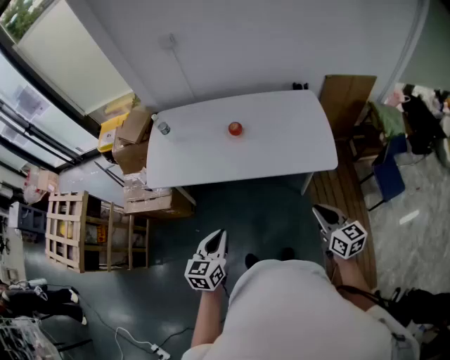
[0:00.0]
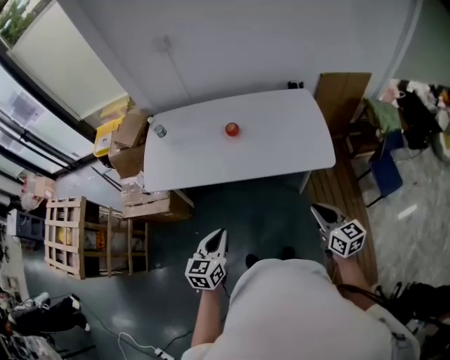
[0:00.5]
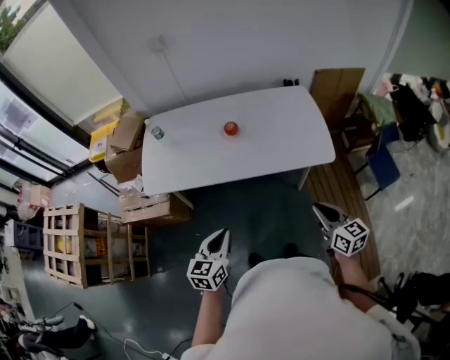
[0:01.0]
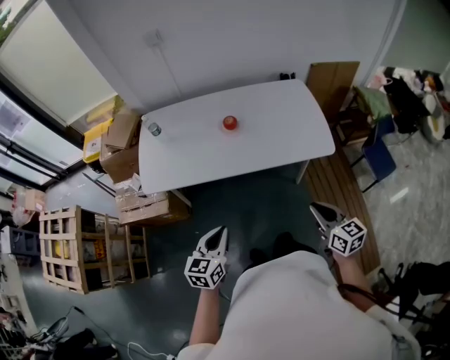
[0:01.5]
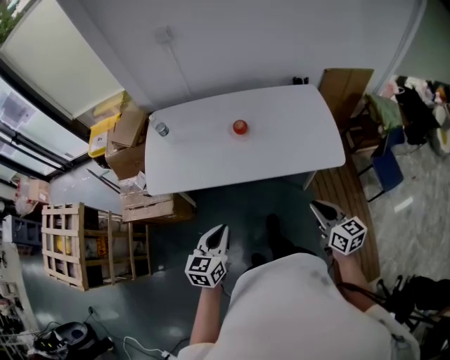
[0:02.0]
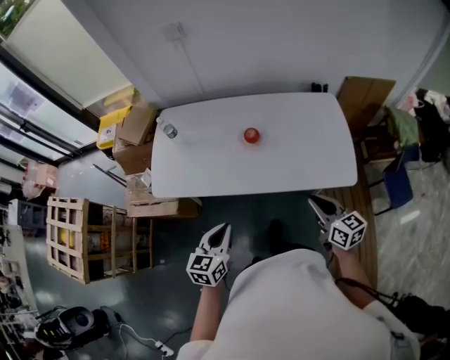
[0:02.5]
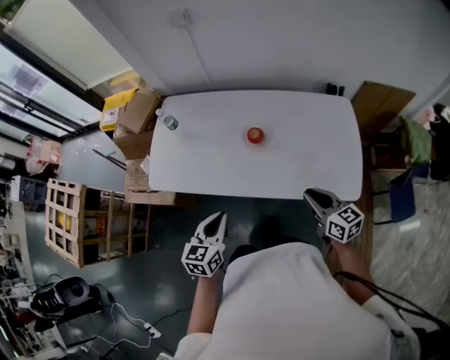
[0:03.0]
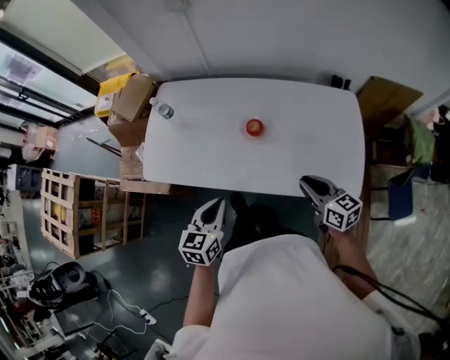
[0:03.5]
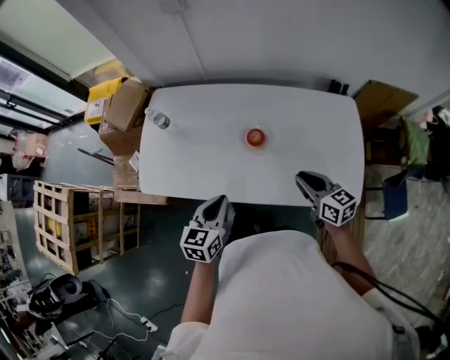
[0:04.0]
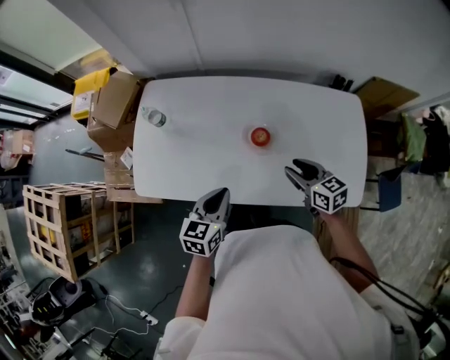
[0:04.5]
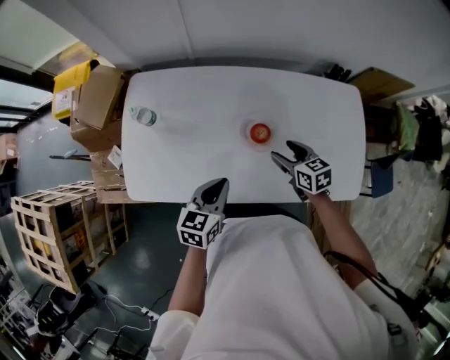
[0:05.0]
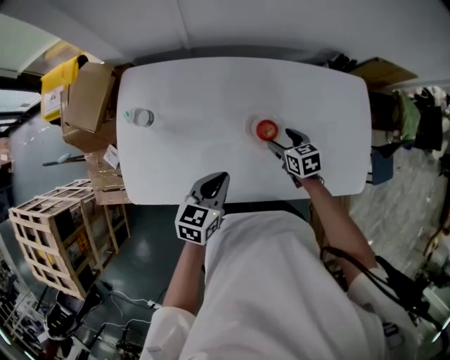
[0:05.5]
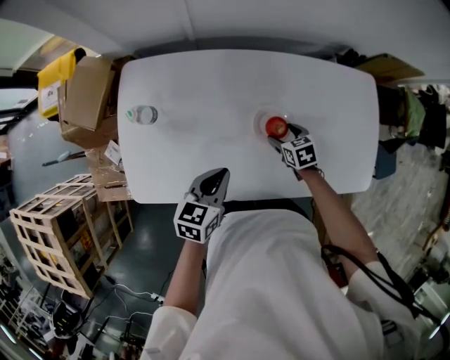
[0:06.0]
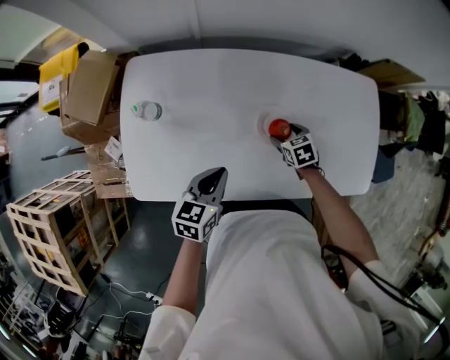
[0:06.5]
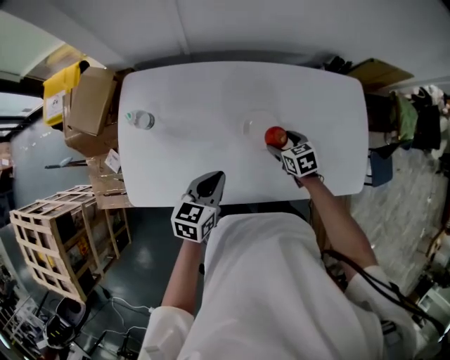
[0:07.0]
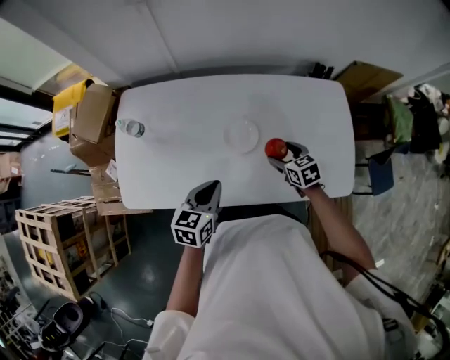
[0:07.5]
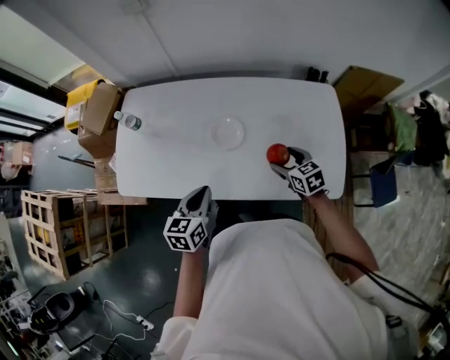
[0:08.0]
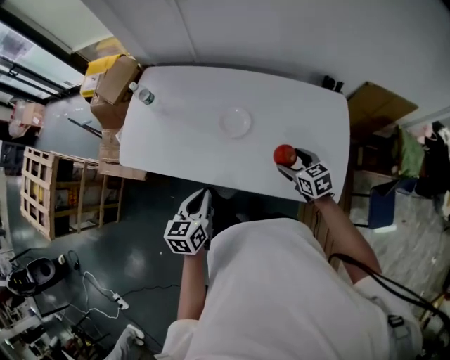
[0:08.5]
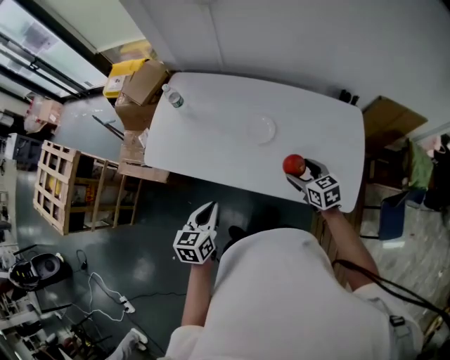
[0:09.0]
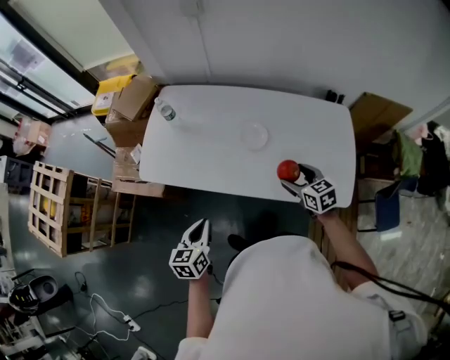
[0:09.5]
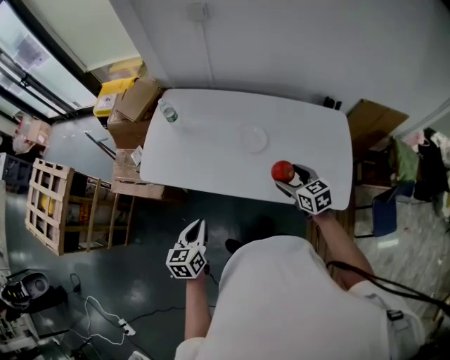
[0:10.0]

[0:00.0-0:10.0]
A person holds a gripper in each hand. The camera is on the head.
0:00.0 to 0:02.0: The left gripper is displaced forward and to the left by roughly 10 cm; the right gripper travels to the left by some 5 cm.
0:02.0 to 0:04.0: Both grippers move forward, some 30 cm.
0:04.0 to 0:06.0: The right gripper shifts approximately 30 cm downward, forward and to the left, tips its fingers downward by approximately 40 degrees, and opens up. The left gripper shifts roughly 20 cm forward, downward and to the left.
0:06.0 to 0:08.0: The left gripper travels to the right, backward and upward by approximately 20 cm. The right gripper heads to the right, upward and backward, covering approximately 25 cm.
0:08.0 to 0:10.0: The left gripper moves to the left and backward, about 20 cm. Meanwhile the right gripper shifts approximately 15 cm to the left, upward and backward.

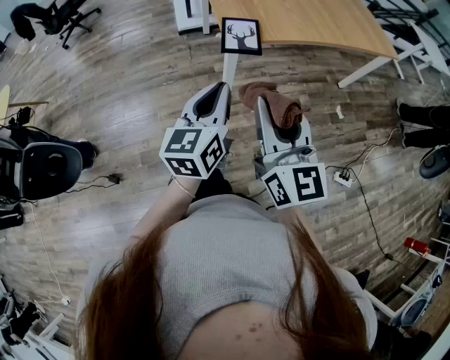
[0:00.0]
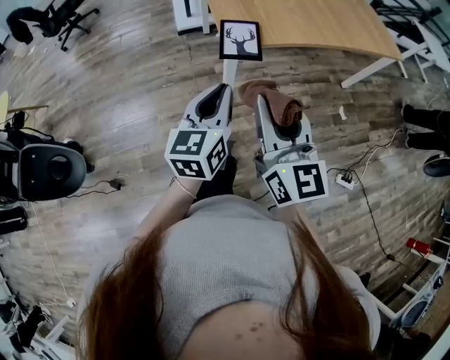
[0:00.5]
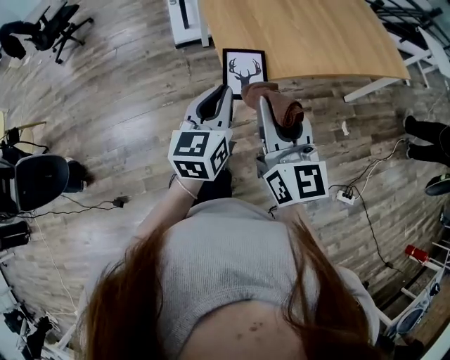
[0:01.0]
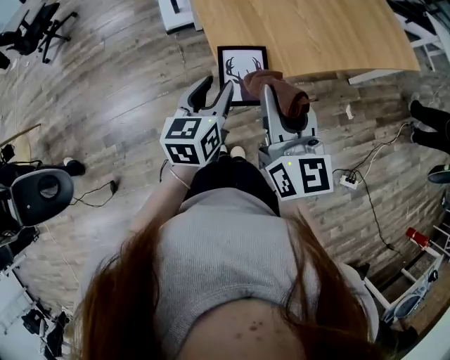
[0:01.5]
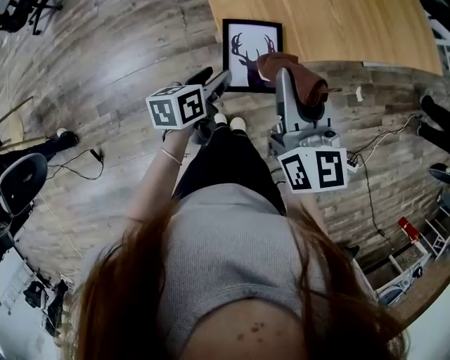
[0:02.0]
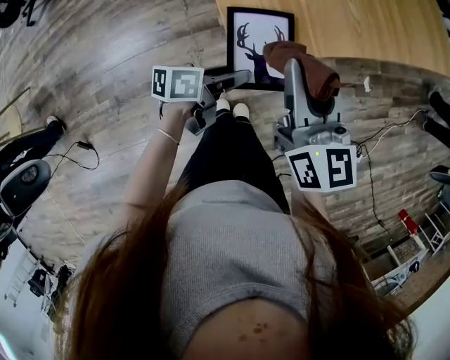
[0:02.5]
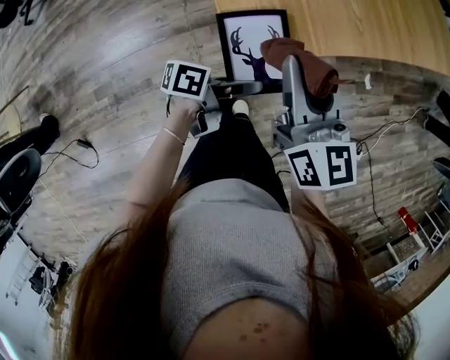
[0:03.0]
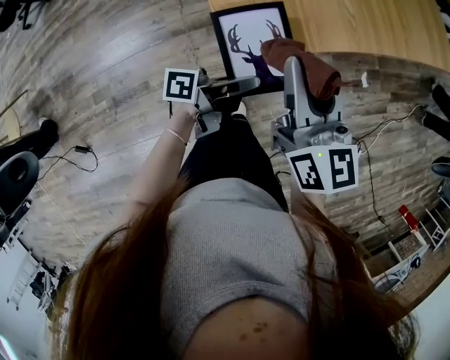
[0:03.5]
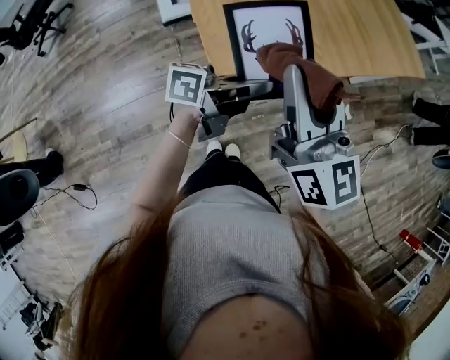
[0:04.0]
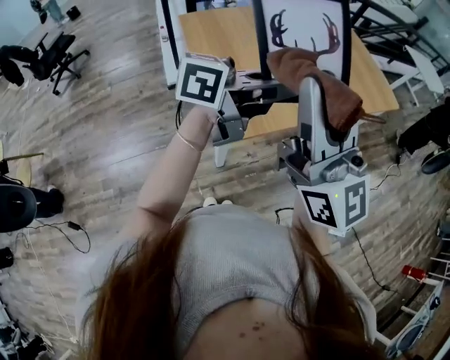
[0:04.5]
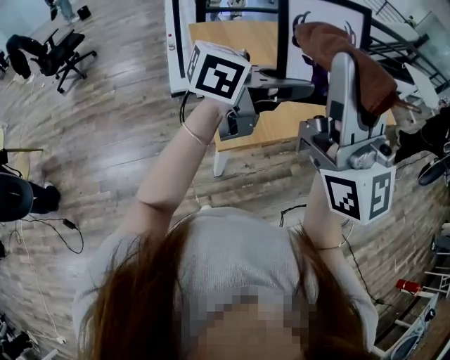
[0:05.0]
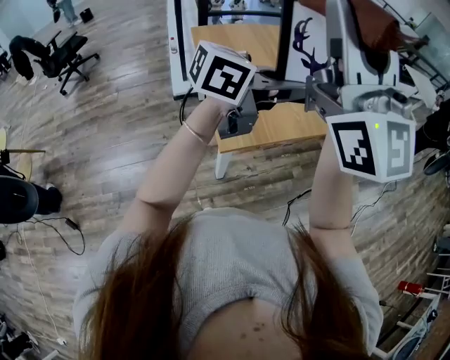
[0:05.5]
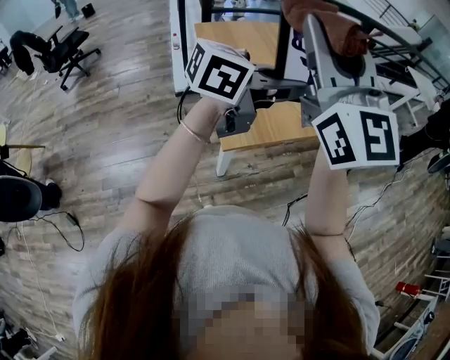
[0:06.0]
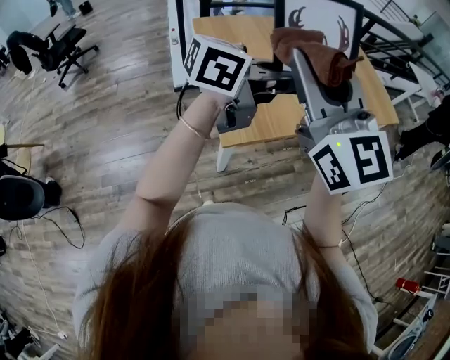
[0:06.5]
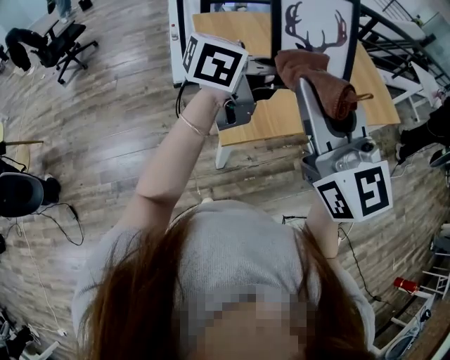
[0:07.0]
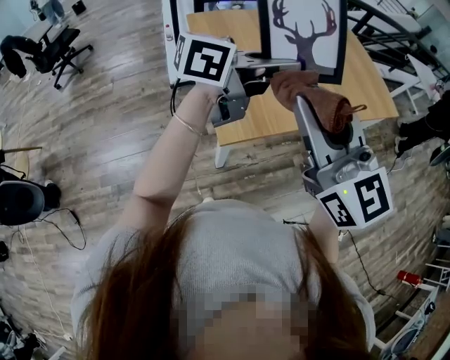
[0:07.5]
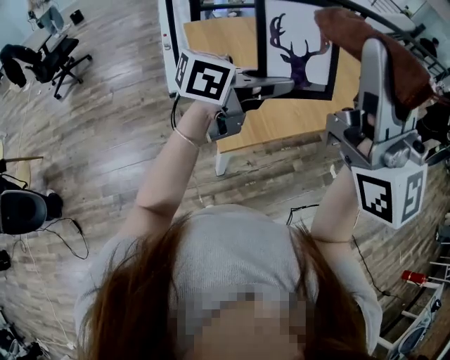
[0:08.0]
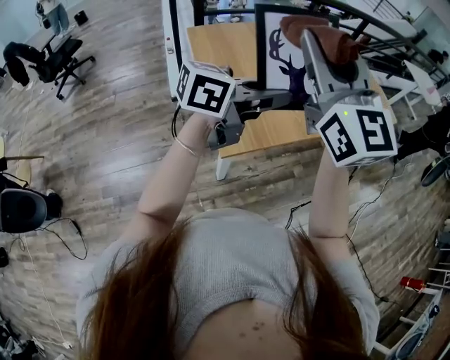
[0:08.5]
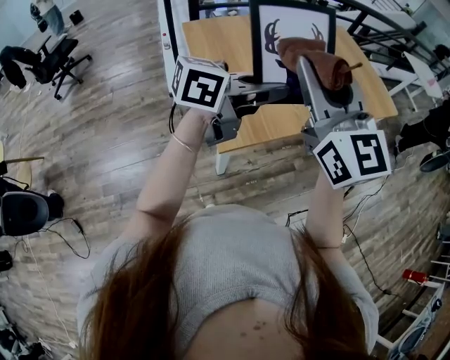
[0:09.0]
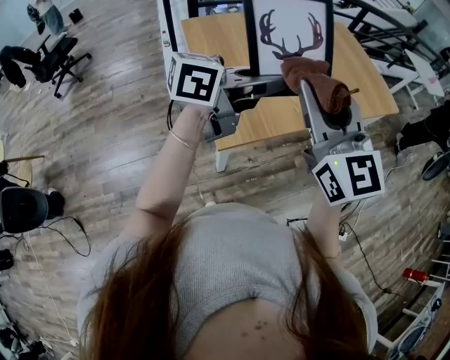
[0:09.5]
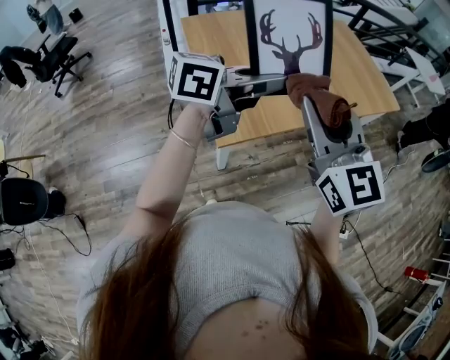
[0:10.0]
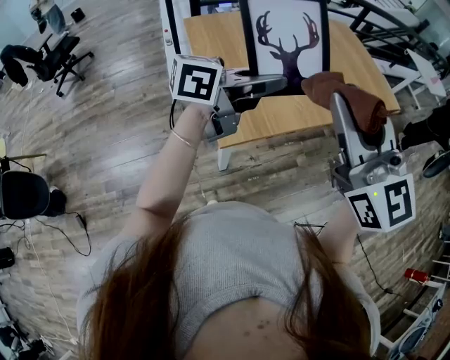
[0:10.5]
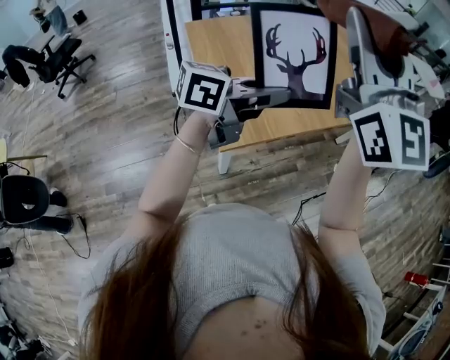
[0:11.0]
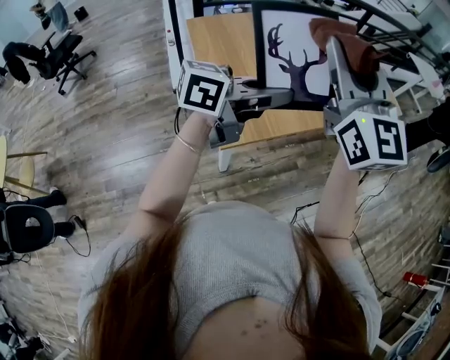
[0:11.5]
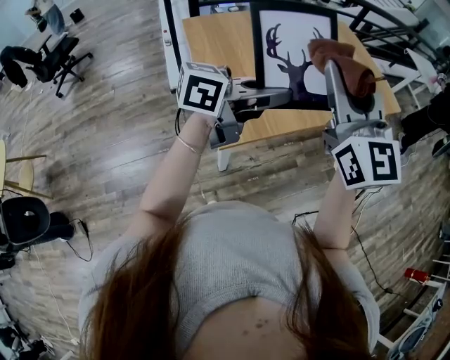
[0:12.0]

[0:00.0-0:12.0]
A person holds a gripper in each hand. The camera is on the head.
0:00.0 to 0:02.0: The right gripper shifts roughly 35 cm forward; the left gripper moves forward and downward, roughly 40 cm, turns by roughly 40 degrees, and opens its fingers.
0:02.0 to 0:04.0: The left gripper goes about 20 cm upward and to the right, angles its fingers upward, by about 40 degrees, and closes. Meanwhile the right gripper heads upward, covering about 10 cm.
0:04.0 to 0:06.0: The two grippers go roughly 25 cm upward. The left gripper swivels roughly 40 degrees, while the right gripper rotates roughly 30 degrees.
0:06.0 to 0:08.0: The right gripper shifts approximately 10 cm to the right, and reaches about 15 cm downward, then returns.
0:08.0 to 0:10.0: The right gripper moves downward, some 20 cm, and points its fingers roughly 30 degrees further downward.
0:10.0 to 0:12.0: The right gripper goes approximately 10 cm upward and forward.

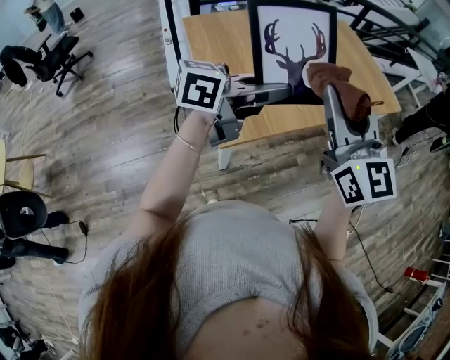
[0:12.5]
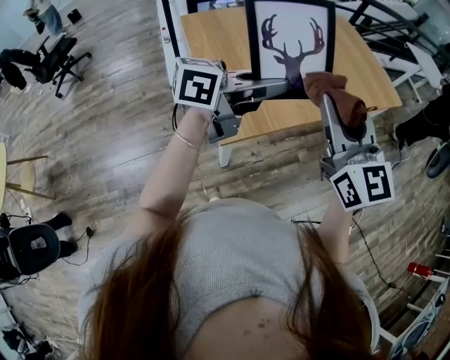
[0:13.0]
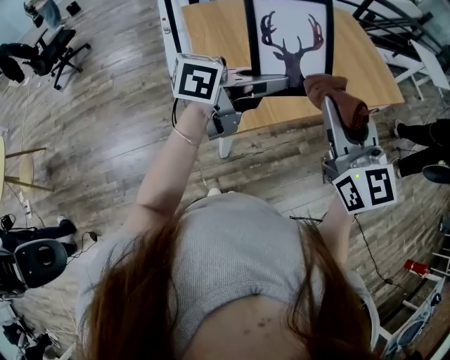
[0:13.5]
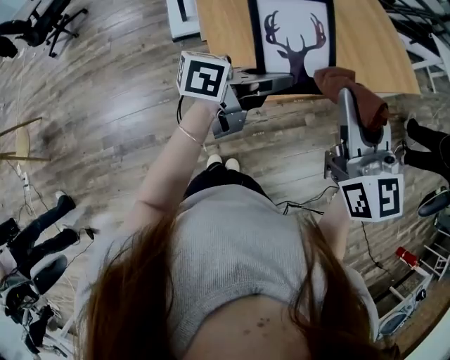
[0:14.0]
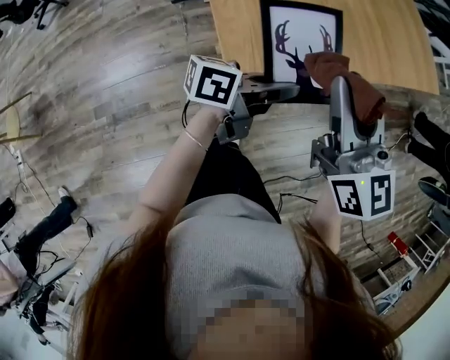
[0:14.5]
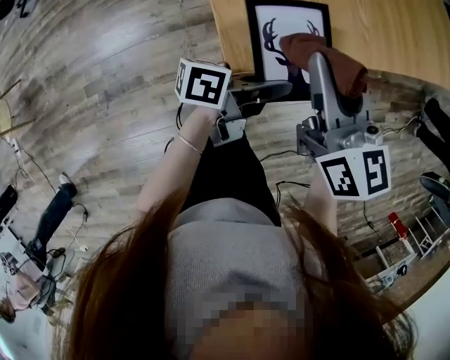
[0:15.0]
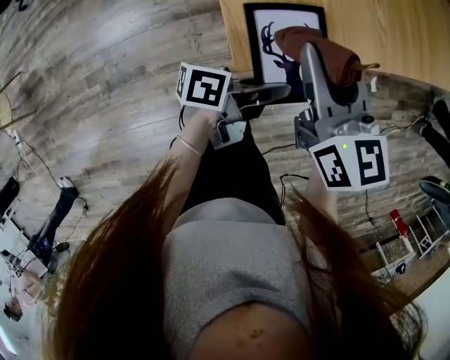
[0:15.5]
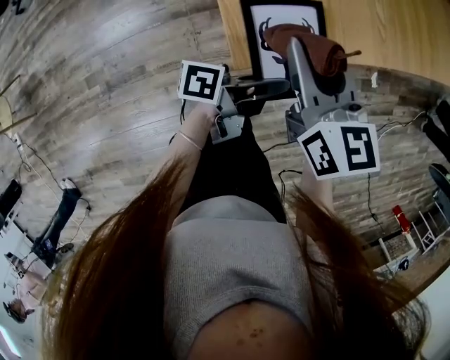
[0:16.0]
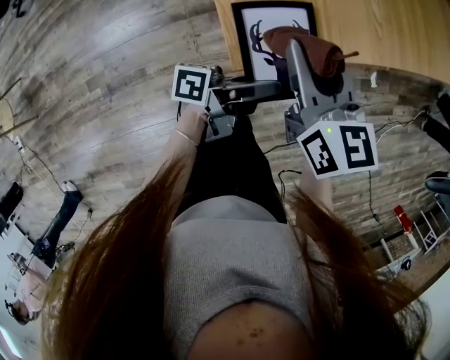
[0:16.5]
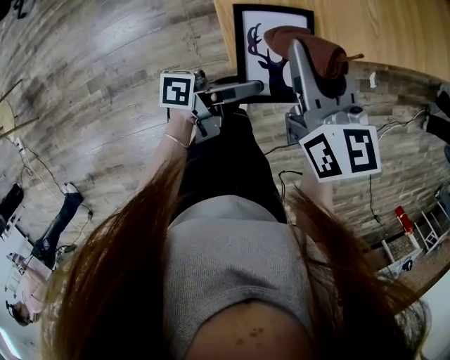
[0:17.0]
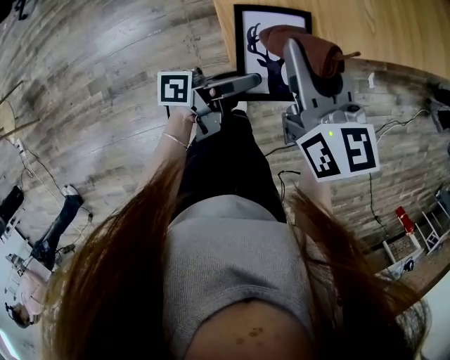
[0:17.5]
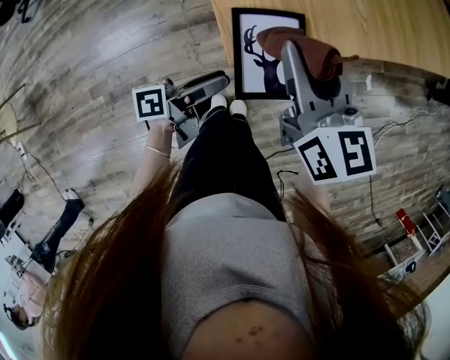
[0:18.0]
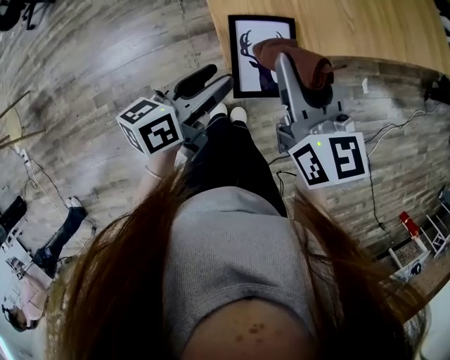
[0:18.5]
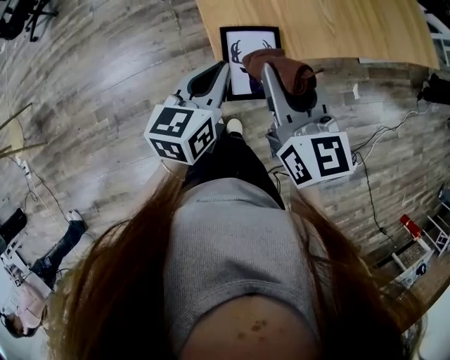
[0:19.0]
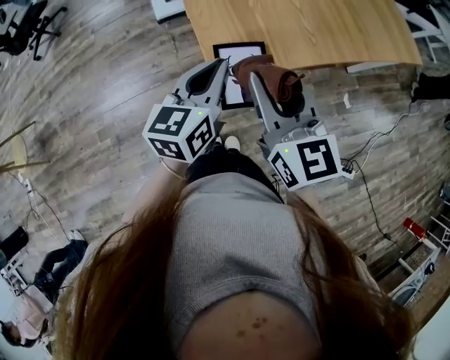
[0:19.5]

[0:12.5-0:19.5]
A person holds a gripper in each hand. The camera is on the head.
0:12.5 to 0:14.5: Both grippers travel together downward, about 20 cm. The left gripper swivels about 30 degrees. The right gripper turns by some 20 degrees.
0:14.5 to 0:16.0: The left gripper goes some 15 cm downward, and changes its angle by approximately 30 degrees. Meanwhile the right gripper moves downward and to the left, some 20 cm.
0:16.0 to 0:17.5: The left gripper opens up.
0:17.5 to 0:19.5: The left gripper travels upward by approximately 20 cm, rolls clockwise, seen from behind, by roughly 60 degrees, and closes its fingers; the right gripper is displaced upward and backward by approximately 15 cm.
